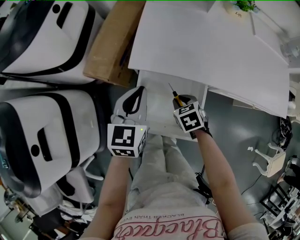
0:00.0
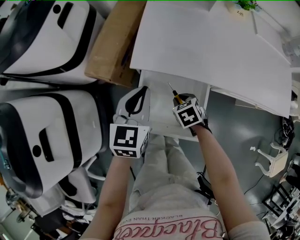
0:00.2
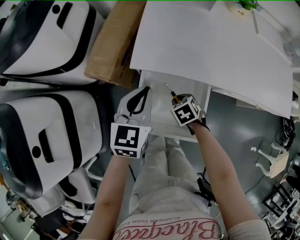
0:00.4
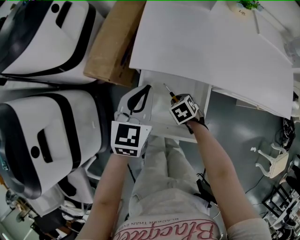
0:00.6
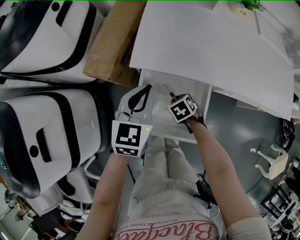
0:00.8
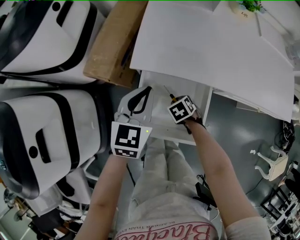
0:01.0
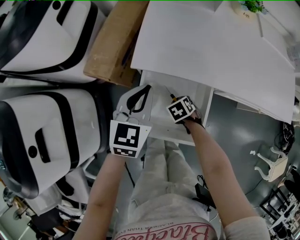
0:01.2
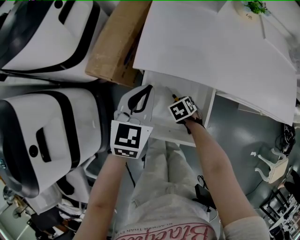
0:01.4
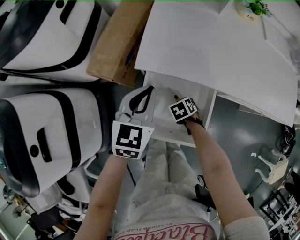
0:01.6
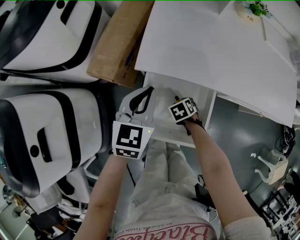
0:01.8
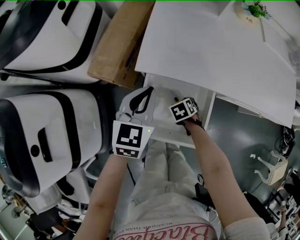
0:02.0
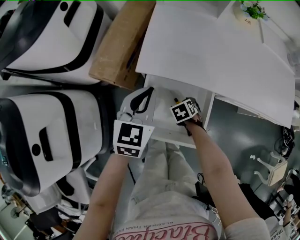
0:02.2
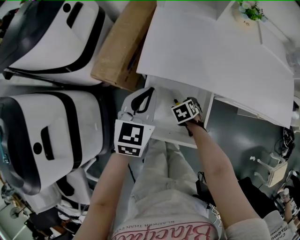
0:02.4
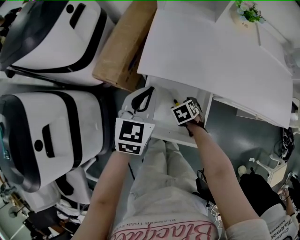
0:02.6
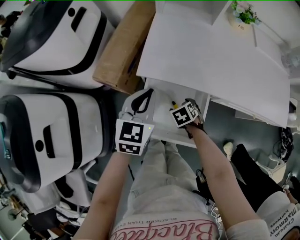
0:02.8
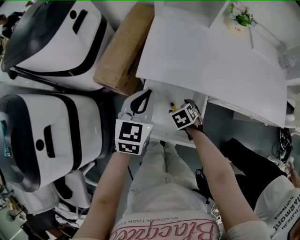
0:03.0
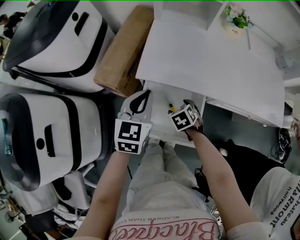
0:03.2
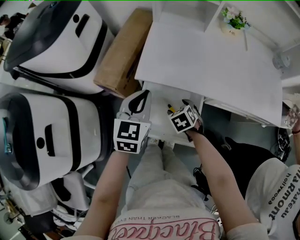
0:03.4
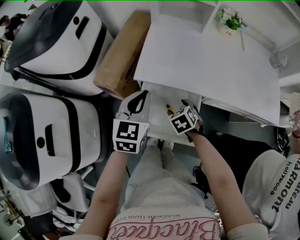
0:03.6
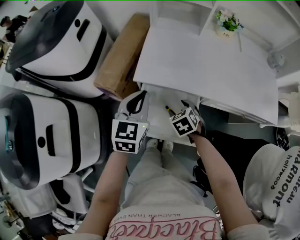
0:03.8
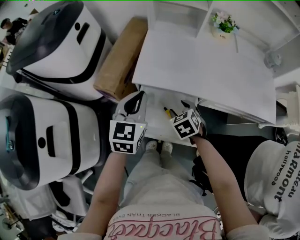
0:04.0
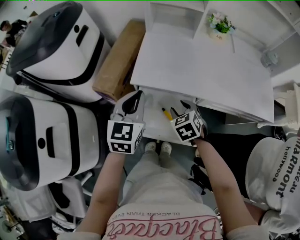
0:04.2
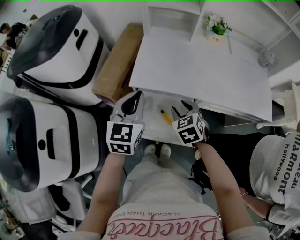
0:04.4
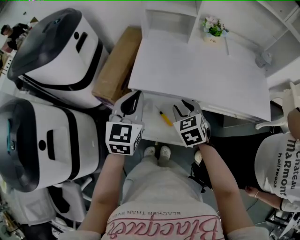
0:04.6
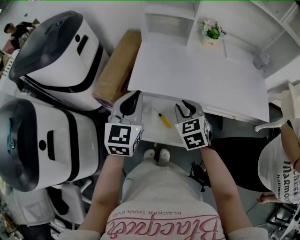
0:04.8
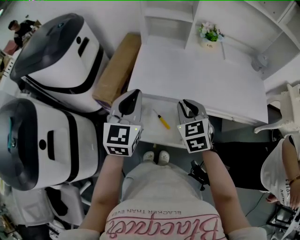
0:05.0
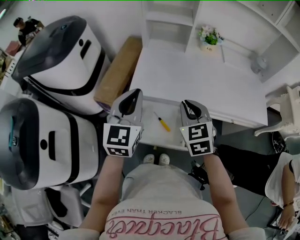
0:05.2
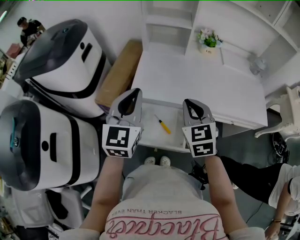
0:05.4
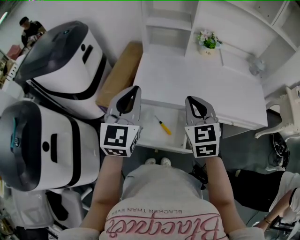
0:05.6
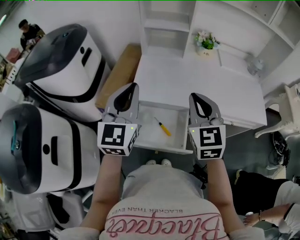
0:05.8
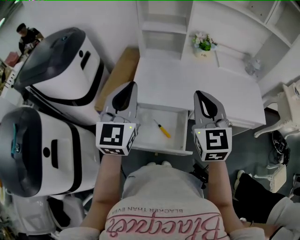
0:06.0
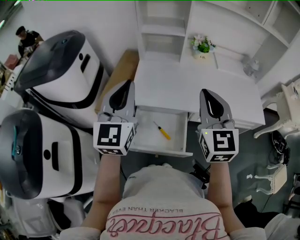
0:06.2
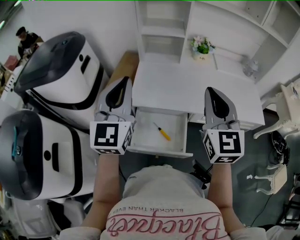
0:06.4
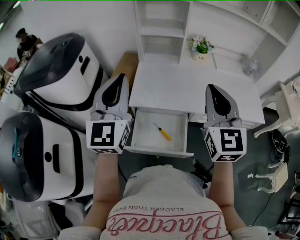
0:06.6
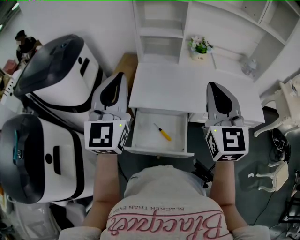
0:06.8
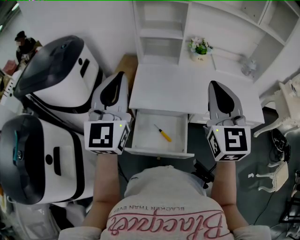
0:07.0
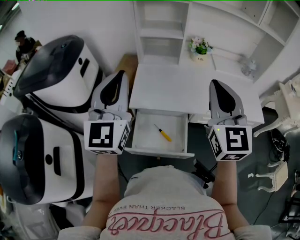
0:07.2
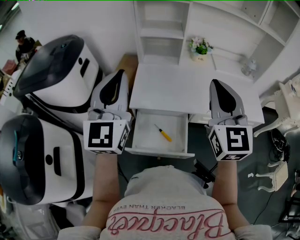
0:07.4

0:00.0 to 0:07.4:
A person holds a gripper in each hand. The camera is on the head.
0:00.0 to 0:01.4: The right gripper goes about 10 cm downward.
0:01.4 to 0:03.0: The right gripper heads upward, covering about 10 cm, and opens.
0:03.0 to 0:04.4: The right gripper goes about 20 cm upward, rotates roughly 20 degrees, and closes up; the left gripper is displaced upward by some 10 cm.
0:04.4 to 0:06.0: The left gripper moves upward, roughly 15 cm, and rotates about 20 degrees; the right gripper heads upward, covering roughly 25 cm, tilts its fingers approximately 40 degrees upward, and closes its fingers.
0:06.0 to 0:07.4: The two grippers go some 10 cm upward.

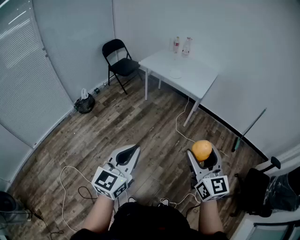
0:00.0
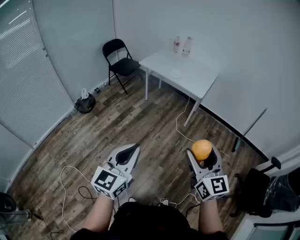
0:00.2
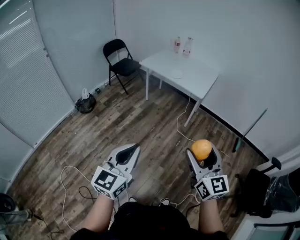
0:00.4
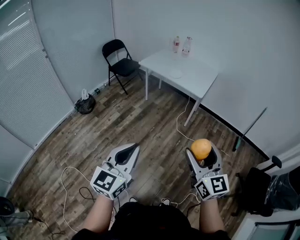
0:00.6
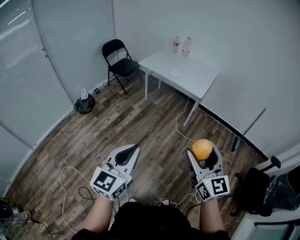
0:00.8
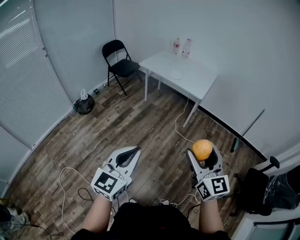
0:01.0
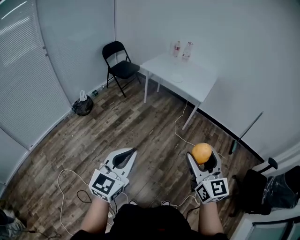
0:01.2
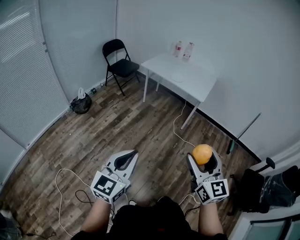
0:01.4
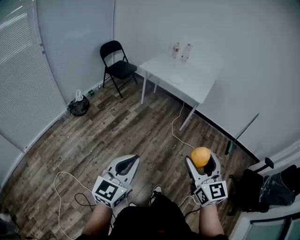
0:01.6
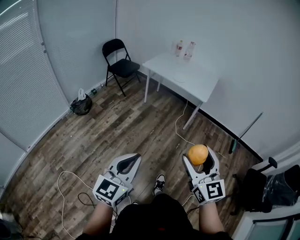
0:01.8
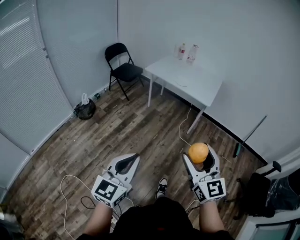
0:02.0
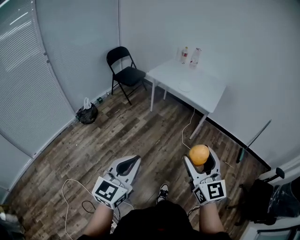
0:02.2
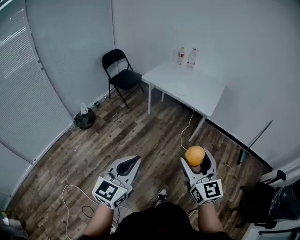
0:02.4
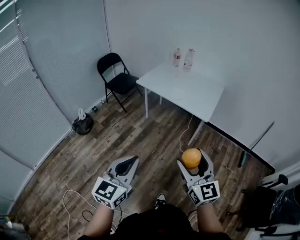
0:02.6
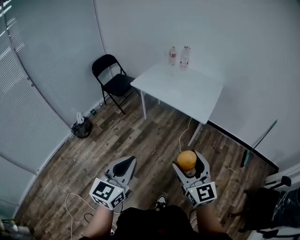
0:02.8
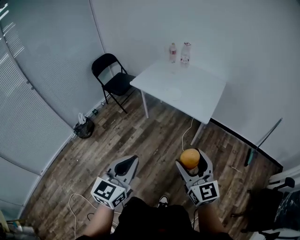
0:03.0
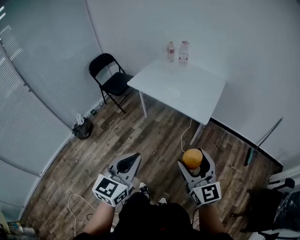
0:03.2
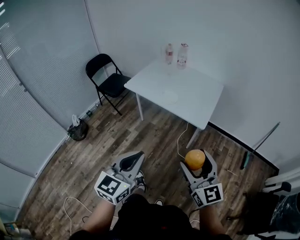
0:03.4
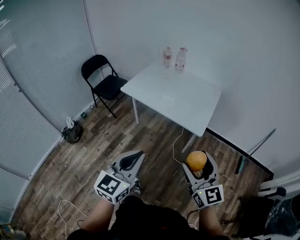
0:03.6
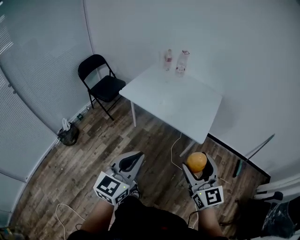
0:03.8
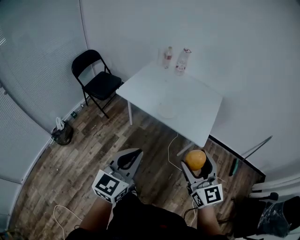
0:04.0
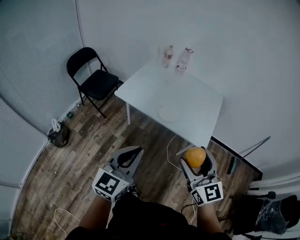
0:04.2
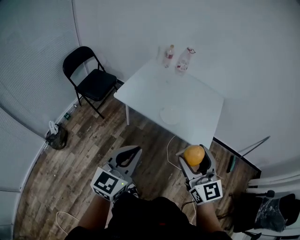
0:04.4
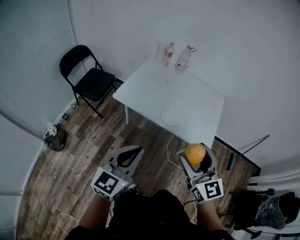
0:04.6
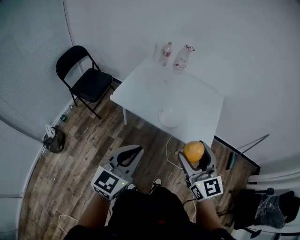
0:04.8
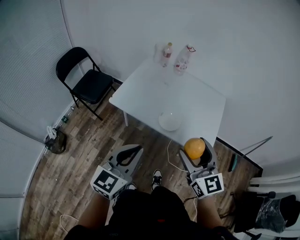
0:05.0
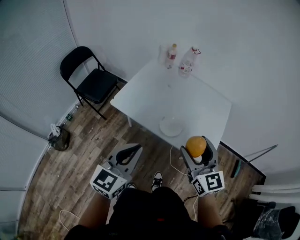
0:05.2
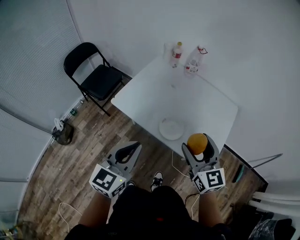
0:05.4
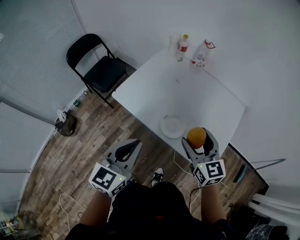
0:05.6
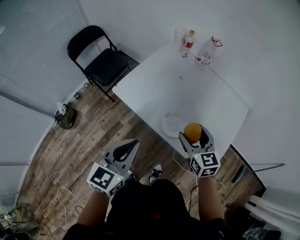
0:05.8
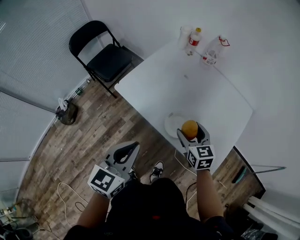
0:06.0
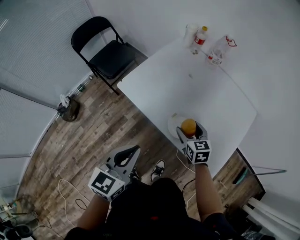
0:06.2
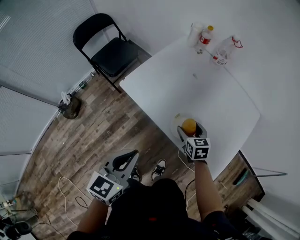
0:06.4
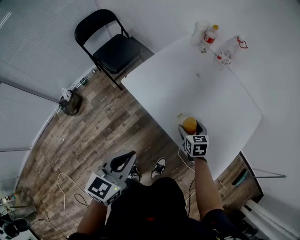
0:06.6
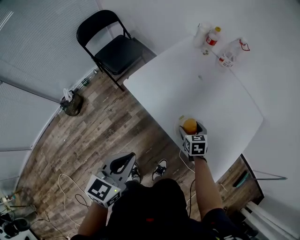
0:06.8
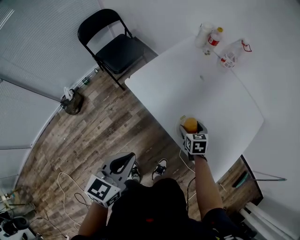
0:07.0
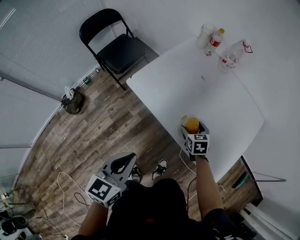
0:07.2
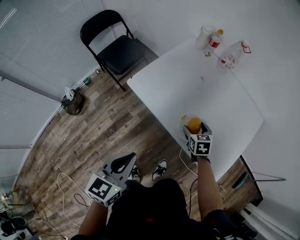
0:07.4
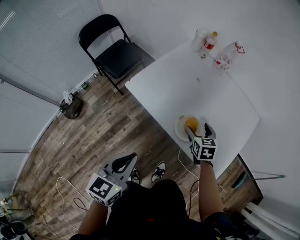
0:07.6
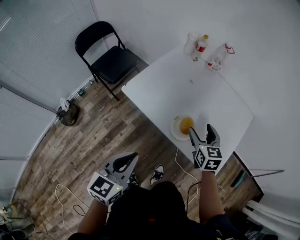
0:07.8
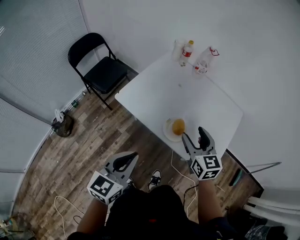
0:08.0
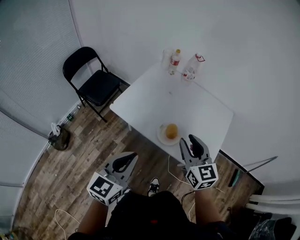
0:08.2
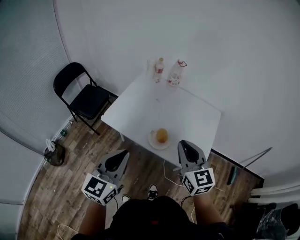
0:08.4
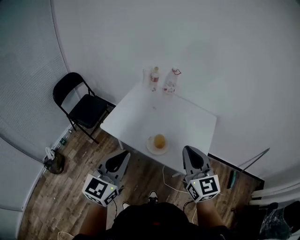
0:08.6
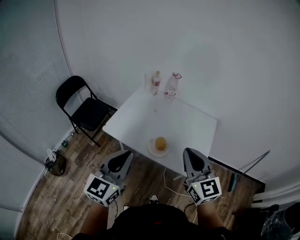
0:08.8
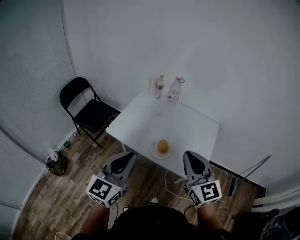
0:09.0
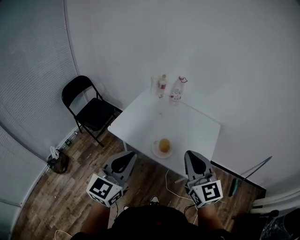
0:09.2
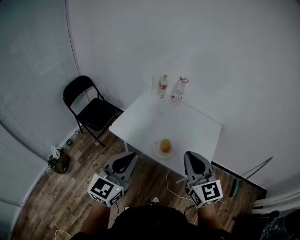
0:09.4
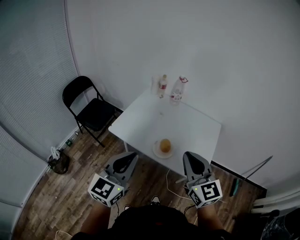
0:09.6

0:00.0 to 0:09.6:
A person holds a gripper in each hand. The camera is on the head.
0:00.0 to 0:01.6: The two grippers go approximately 10 cm to the left.
0:01.6 to 0:03.2: Both grippers are carried forward, some 40 cm.
0:03.2 to 0:04.8: Both grippers move forward and to the left, approximately 40 cm.
0:04.8 to 0:06.4: The right gripper moves downward and forward, about 40 cm, and points its fingers about 40 degrees further downward. Meanwhile the left gripper moves forward and downward, roughly 15 cm, and rotates roughly 30 degrees.
0:06.4 to 0:08.0: The right gripper is displaced upward by approximately 20 cm, and changes its angle by approximately 20 degrees. Meanwhile the left gripper changes place by approximately 5 cm.
0:08.0 to 0:09.6: The right gripper goes approximately 25 cm upward and backward, and closes its fingers. The left gripper shifts some 15 cm upward.

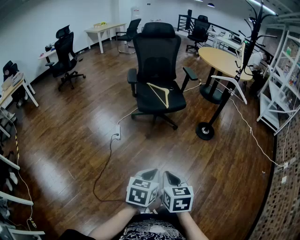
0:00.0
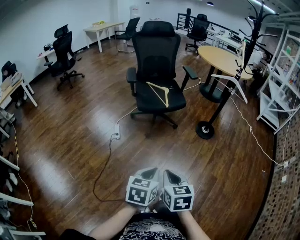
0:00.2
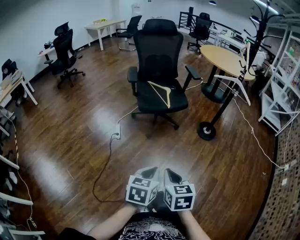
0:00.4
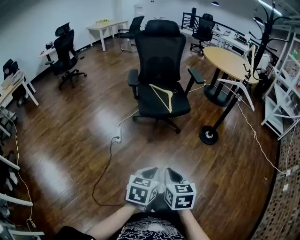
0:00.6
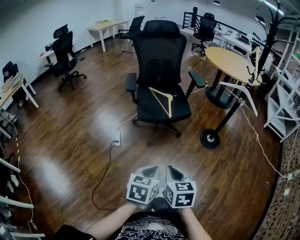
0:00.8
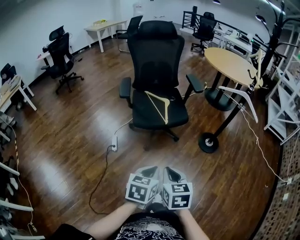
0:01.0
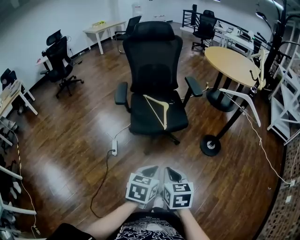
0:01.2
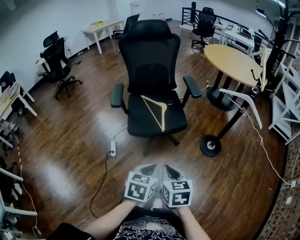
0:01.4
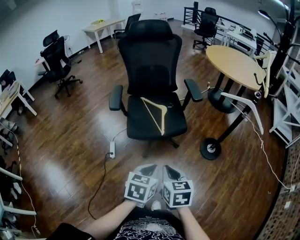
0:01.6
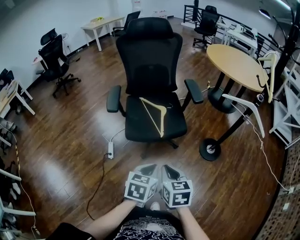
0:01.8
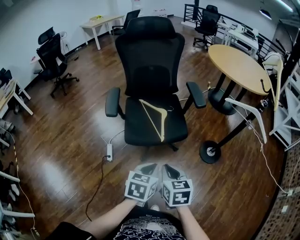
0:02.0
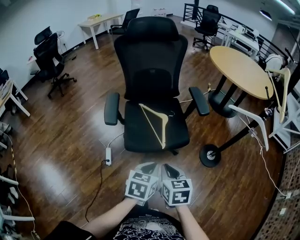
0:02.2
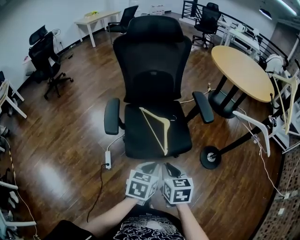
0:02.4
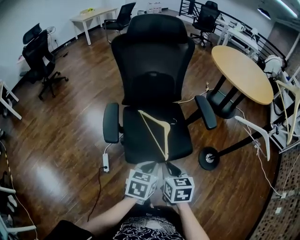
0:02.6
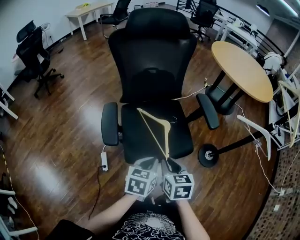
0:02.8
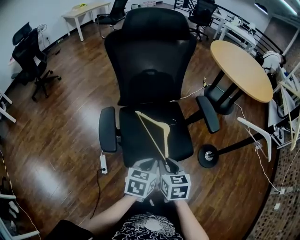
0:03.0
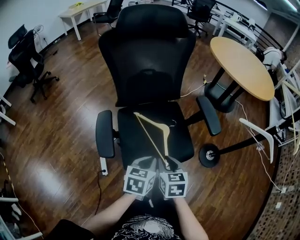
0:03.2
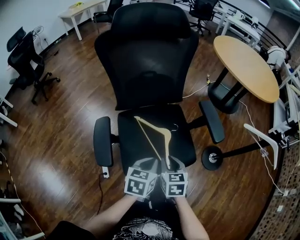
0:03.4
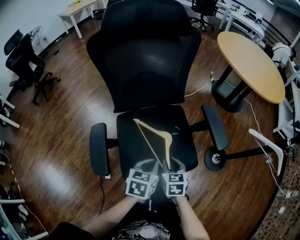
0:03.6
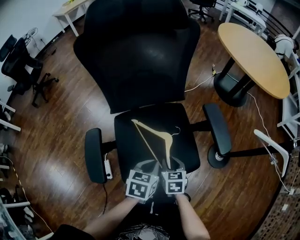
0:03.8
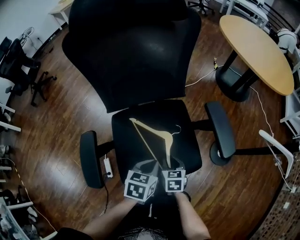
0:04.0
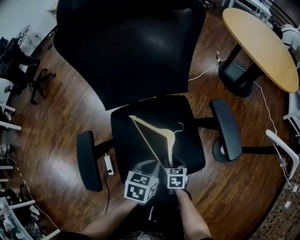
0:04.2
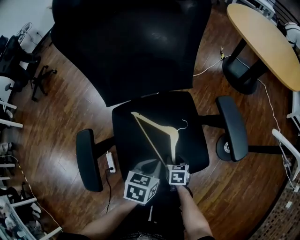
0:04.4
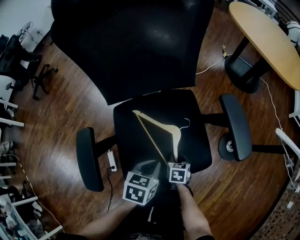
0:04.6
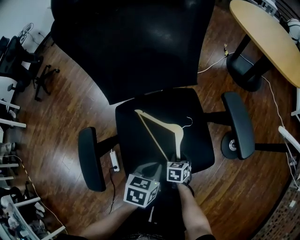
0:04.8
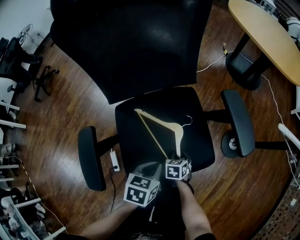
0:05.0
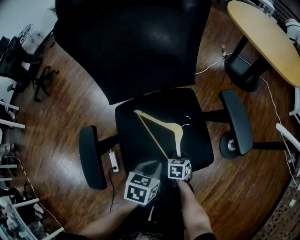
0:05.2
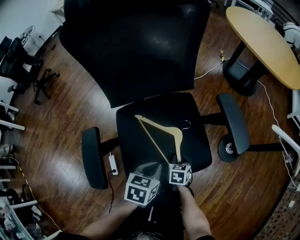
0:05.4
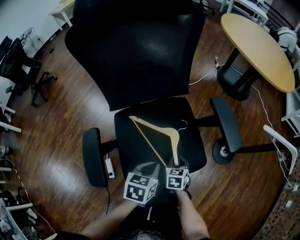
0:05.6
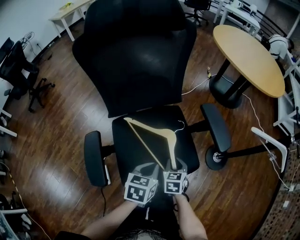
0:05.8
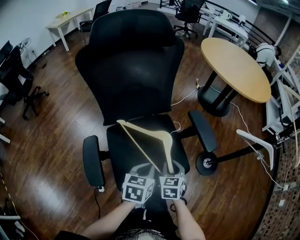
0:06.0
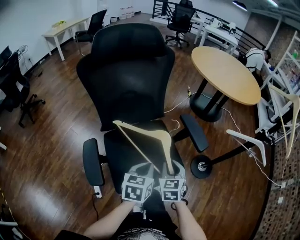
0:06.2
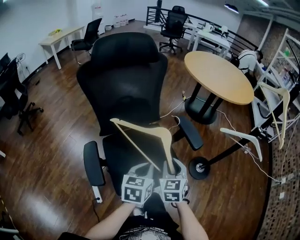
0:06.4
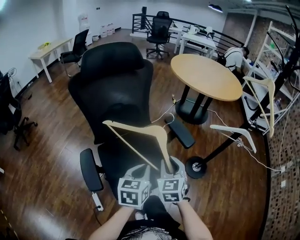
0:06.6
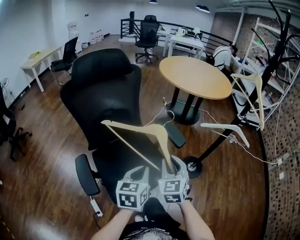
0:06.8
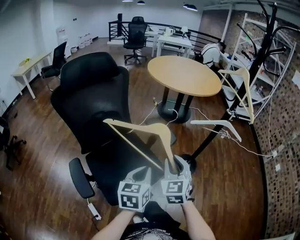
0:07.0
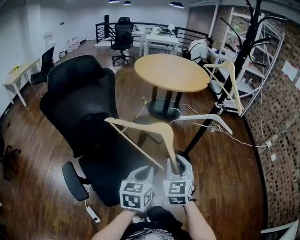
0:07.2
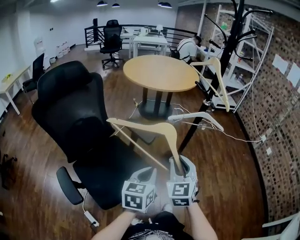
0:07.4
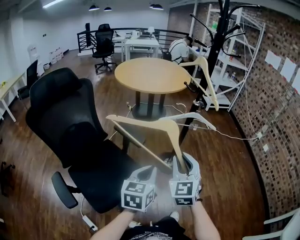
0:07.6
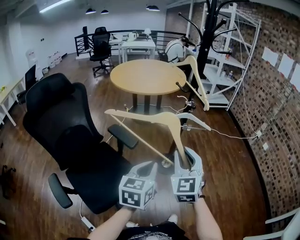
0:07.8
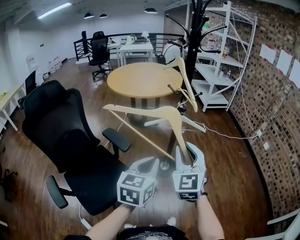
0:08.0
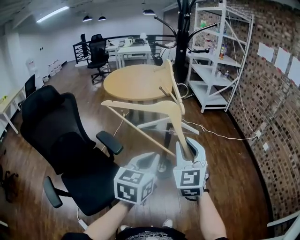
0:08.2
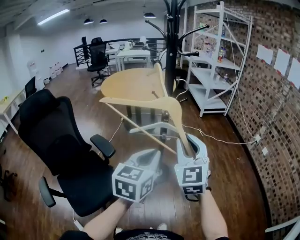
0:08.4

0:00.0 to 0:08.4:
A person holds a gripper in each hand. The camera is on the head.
0:00.0 to 0:01.4: The grippers both shift forward by some 30 cm.
0:01.4 to 0:02.8: The two grippers go some 30 cm forward.
0:02.8 to 0:04.2: The left gripper goes some 20 cm forward and downward, while the right gripper goes about 30 cm downward and forward.
0:04.2 to 0:05.6: The right gripper moves approximately 5 cm downward and comes back.
0:05.6 to 0:07.0: The left gripper is displaced upward and to the right by approximately 20 cm, and changes its angle by roughly 30 degrees; the right gripper goes approximately 35 cm upward, and points its fingers about 40 degrees further upward.
0:07.0 to 0:08.4: Both grippers travel together to the right and upward, some 40 cm. The left gripper turns by about 30 degrees.
